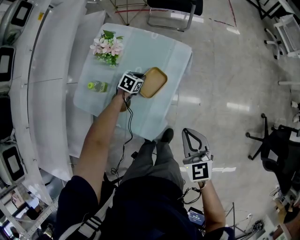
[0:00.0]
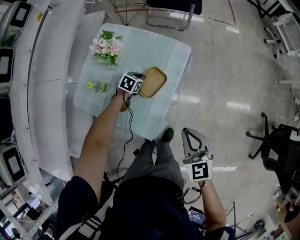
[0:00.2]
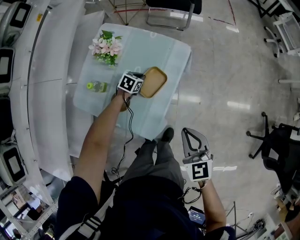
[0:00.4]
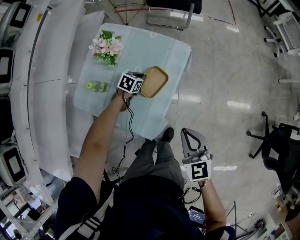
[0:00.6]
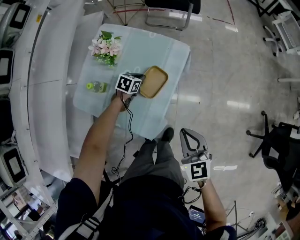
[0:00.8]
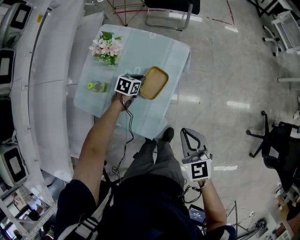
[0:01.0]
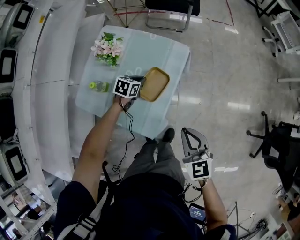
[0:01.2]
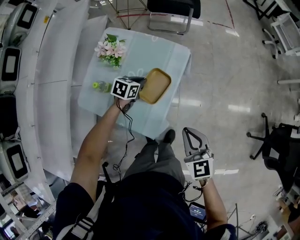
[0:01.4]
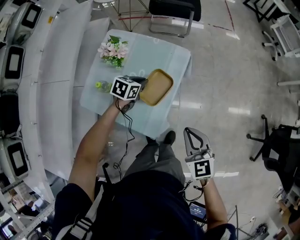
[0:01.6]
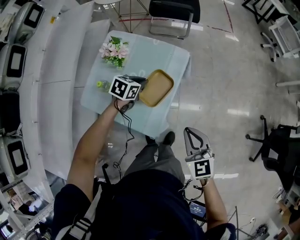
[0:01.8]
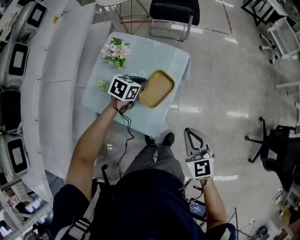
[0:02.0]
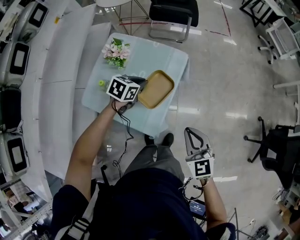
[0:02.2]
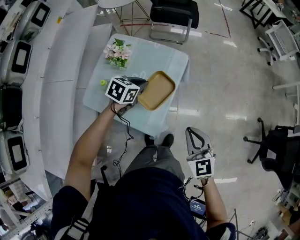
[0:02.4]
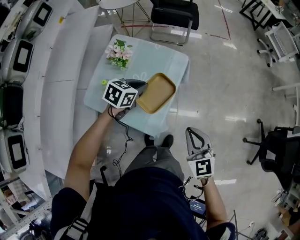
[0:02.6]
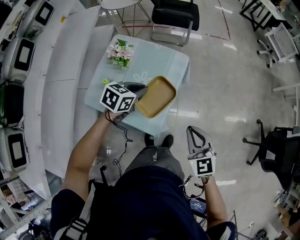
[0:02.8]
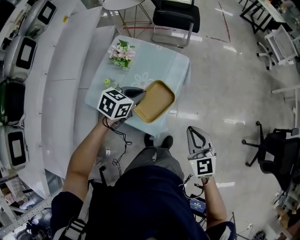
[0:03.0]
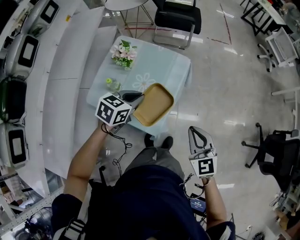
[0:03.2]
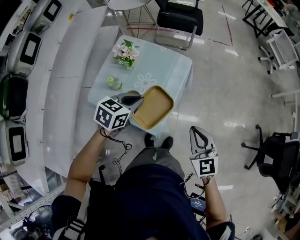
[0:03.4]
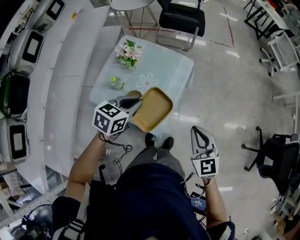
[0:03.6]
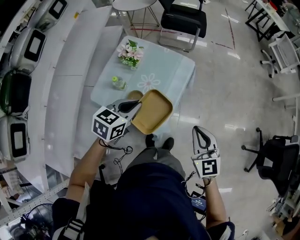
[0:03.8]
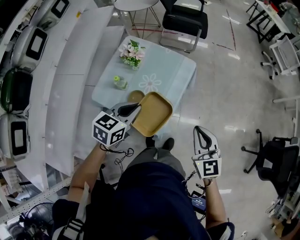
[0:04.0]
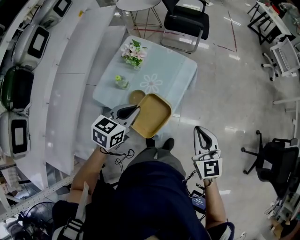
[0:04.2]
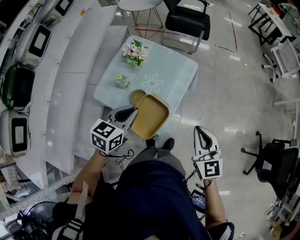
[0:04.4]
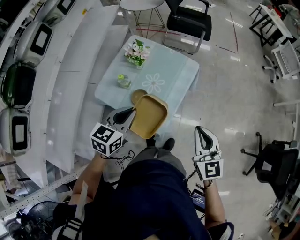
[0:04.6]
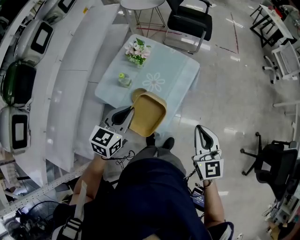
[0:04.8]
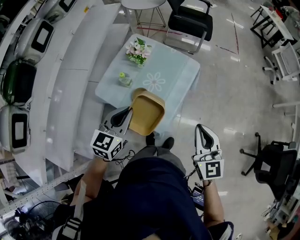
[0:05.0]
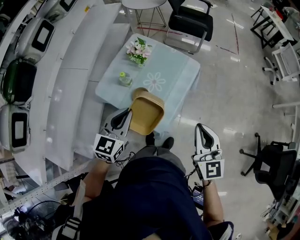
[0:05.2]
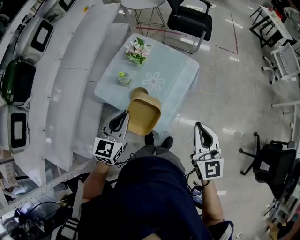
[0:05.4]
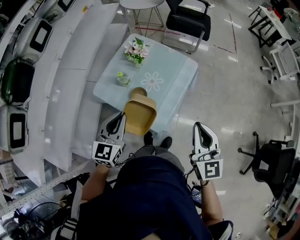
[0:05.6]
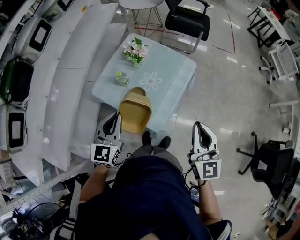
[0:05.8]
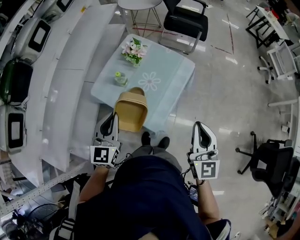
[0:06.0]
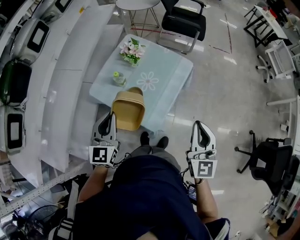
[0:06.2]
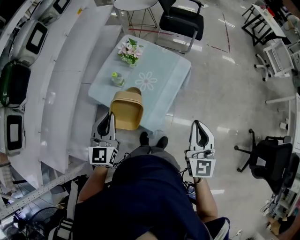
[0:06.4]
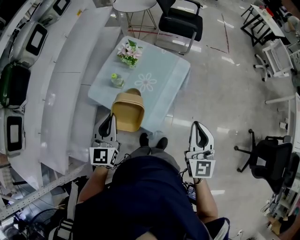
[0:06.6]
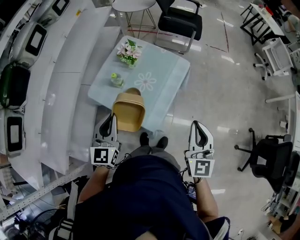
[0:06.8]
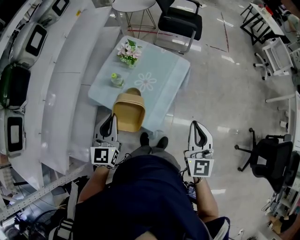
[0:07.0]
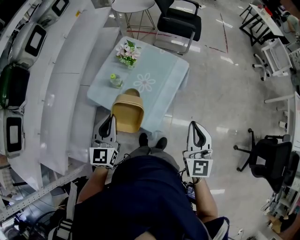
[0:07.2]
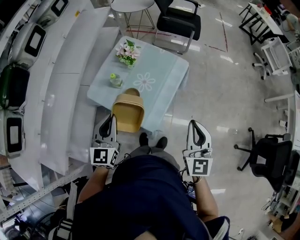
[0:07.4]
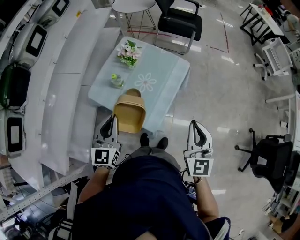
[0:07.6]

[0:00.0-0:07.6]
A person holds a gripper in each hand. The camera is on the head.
0:00.0 to 0:01.6: The left gripper moves upward, some 15 cm.
0:01.6 to 0:03.0: The right gripper is displaced upward by some 5 cm, while the left gripper moves upward and backward, roughly 20 cm.
0:03.0 to 0:04.6: The left gripper heads backward, upward and to the left, covering roughly 15 cm, and turns by roughly 20 degrees. The right gripper goes roughly 5 cm upward.
0:04.6 to 0:06.0: The left gripper travels to the left by some 5 cm, and changes its angle by approximately 30 degrees.
0:06.0 to 0:07.6: The grippers stay close to where they were, moving slightly.

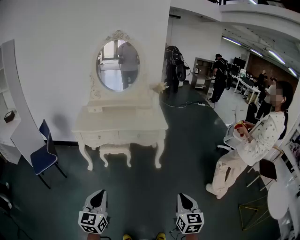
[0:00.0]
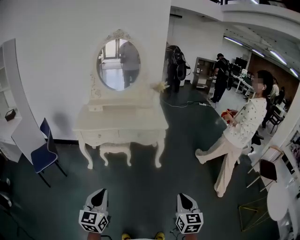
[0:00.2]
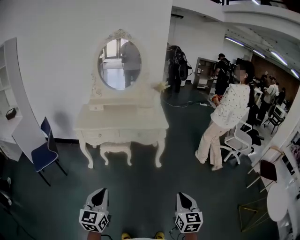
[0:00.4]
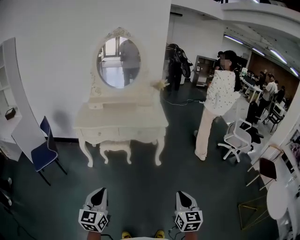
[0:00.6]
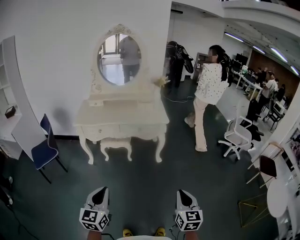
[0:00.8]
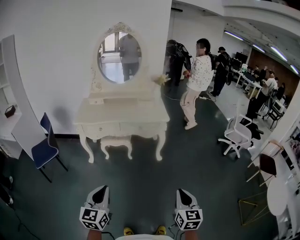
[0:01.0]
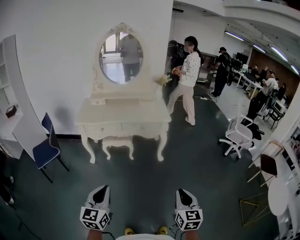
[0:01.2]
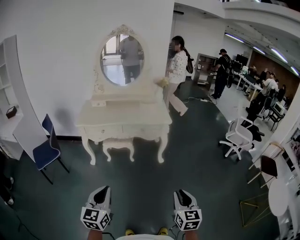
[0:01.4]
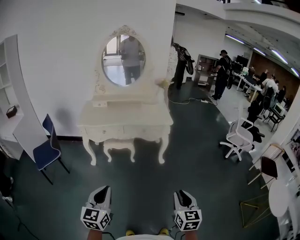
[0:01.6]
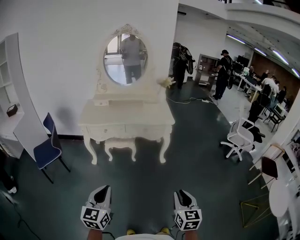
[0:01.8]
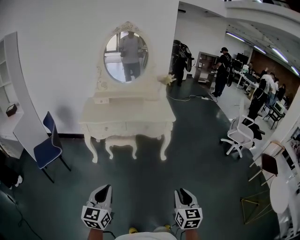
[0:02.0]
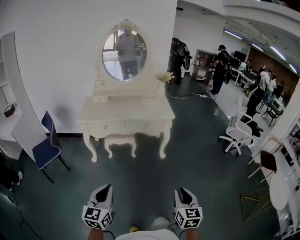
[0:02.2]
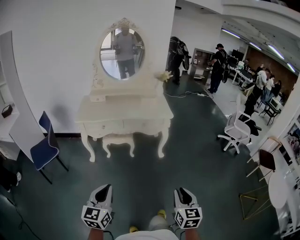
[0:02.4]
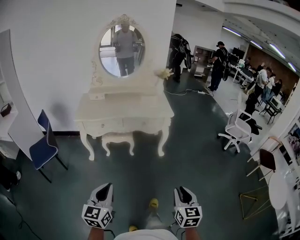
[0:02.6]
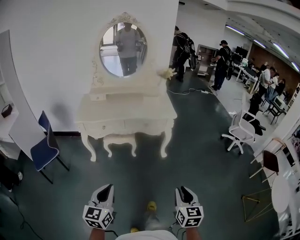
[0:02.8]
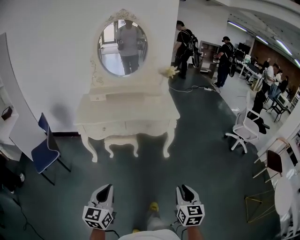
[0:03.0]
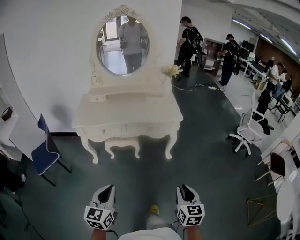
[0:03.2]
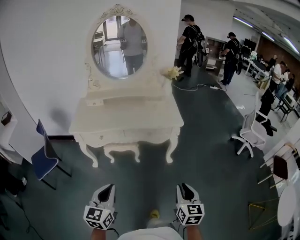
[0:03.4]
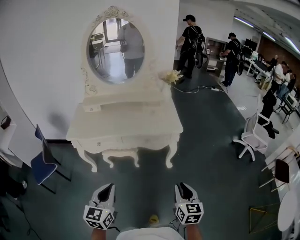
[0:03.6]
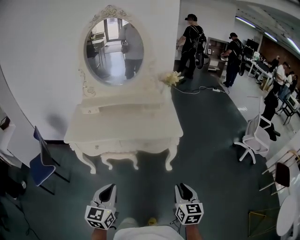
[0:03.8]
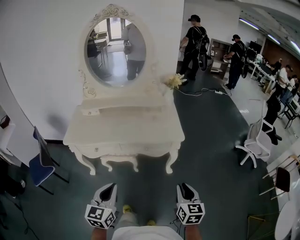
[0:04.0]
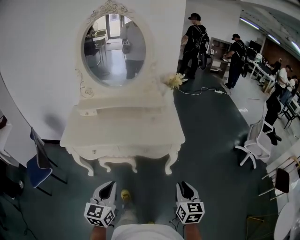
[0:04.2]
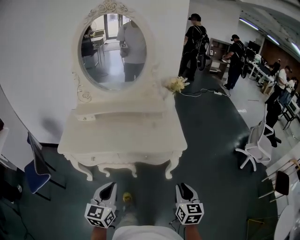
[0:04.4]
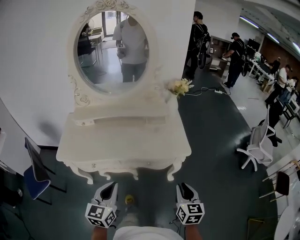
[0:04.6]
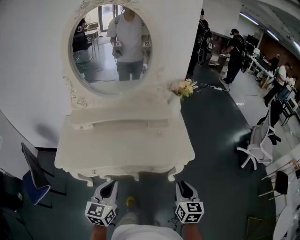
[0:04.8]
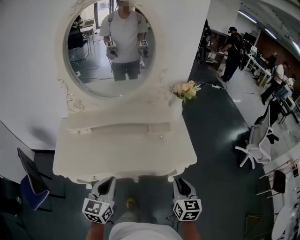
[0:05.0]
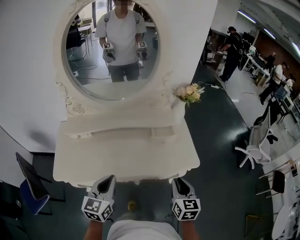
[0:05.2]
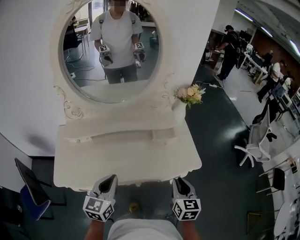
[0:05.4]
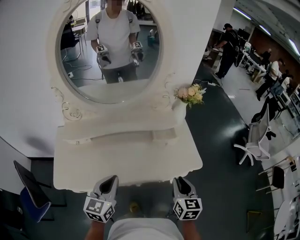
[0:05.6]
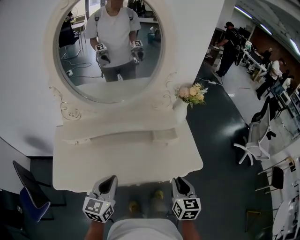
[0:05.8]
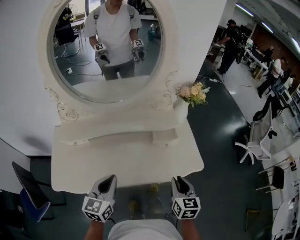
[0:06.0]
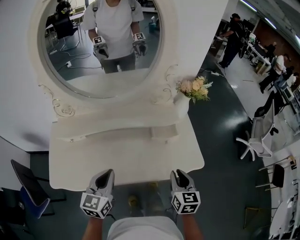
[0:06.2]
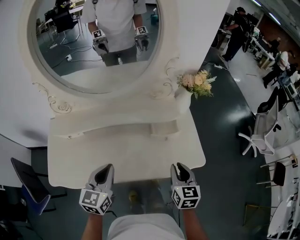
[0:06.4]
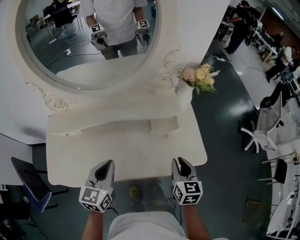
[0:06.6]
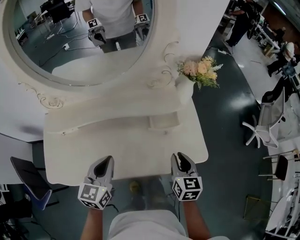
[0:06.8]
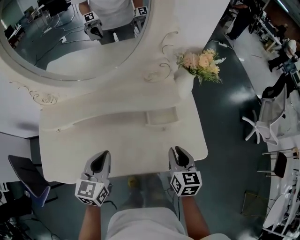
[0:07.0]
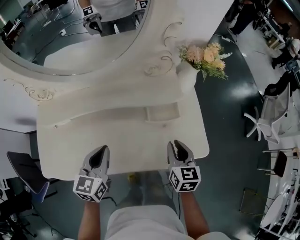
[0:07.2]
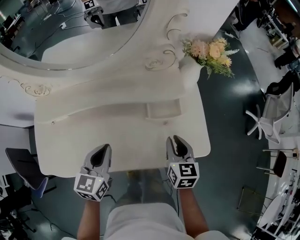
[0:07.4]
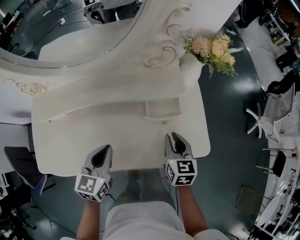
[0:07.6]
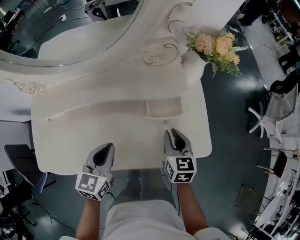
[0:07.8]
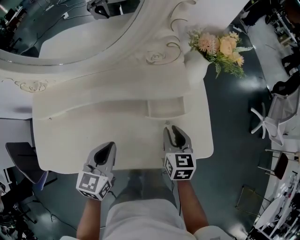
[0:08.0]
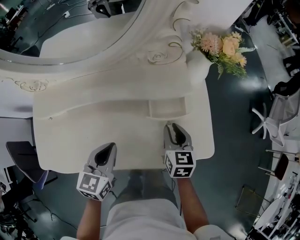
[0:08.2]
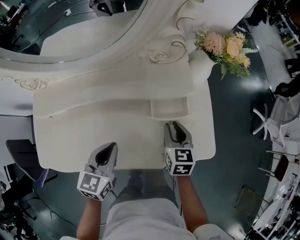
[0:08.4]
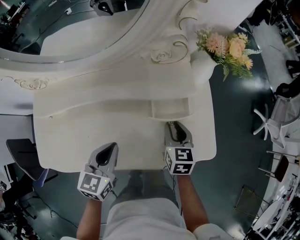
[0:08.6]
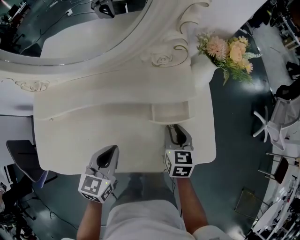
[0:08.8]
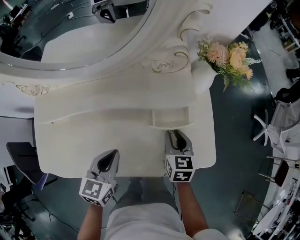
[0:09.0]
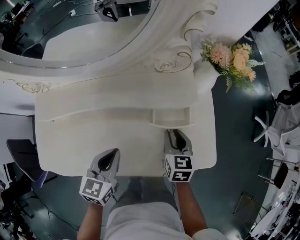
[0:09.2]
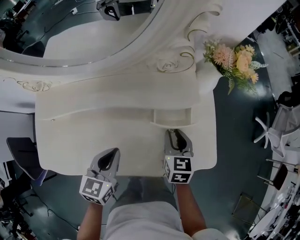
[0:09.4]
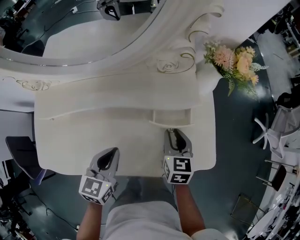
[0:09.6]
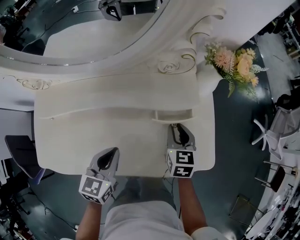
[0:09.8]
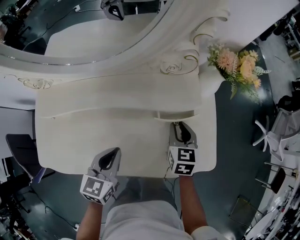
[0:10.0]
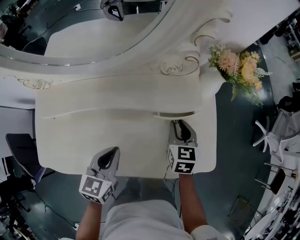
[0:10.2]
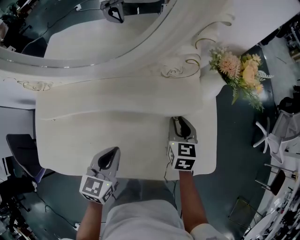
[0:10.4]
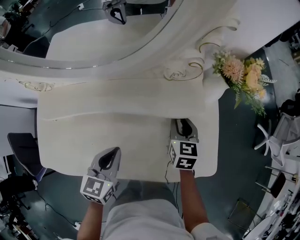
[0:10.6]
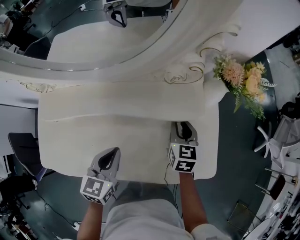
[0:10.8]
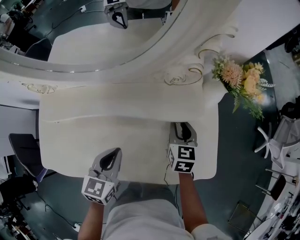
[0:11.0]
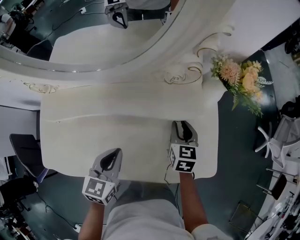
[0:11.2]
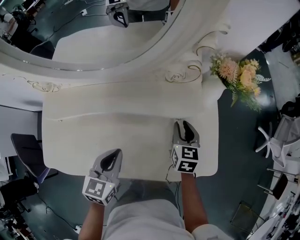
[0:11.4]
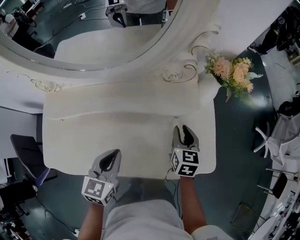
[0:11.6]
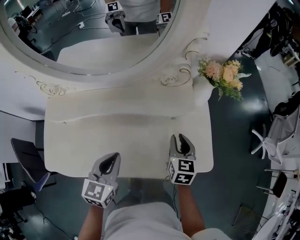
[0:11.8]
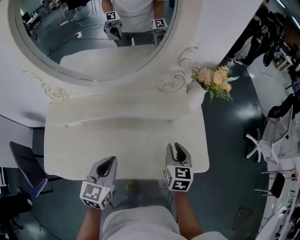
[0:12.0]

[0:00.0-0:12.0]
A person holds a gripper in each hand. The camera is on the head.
0:00.0 to 0:01.6: There are only small adjustments of the grippers.
0:01.6 to 0:03.0: Both grippers travel together forward, roughly 10 cm.
0:03.0 to 0:04.4: The grippers both shift forward by some 40 cm.
0:04.4 to 0:06.0: Both grippers travel together forward and to the left, some 35 cm.
0:06.0 to 0:07.6: The right gripper moves forward and downward, some 20 cm. The left gripper heads forward, downward and to the right, covering roughly 15 cm.
0:07.6 to 0:09.0: The right gripper goes about 5 cm forward.
0:09.0 to 0:10.4: The right gripper is displaced forward by approximately 5 cm.
0:10.4 to 0:12.0: The left gripper shifts approximately 10 cm upward and backward. Meanwhile the right gripper goes roughly 15 cm backward and upward.

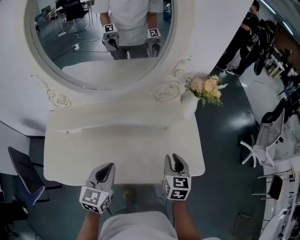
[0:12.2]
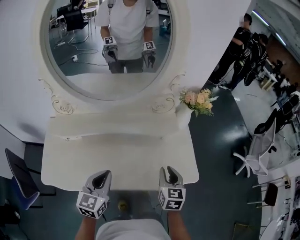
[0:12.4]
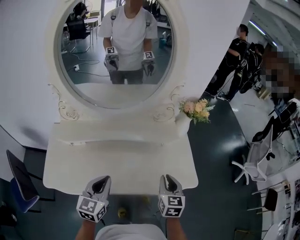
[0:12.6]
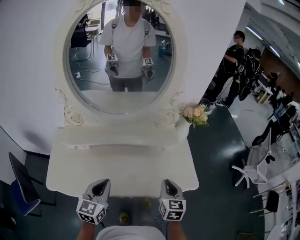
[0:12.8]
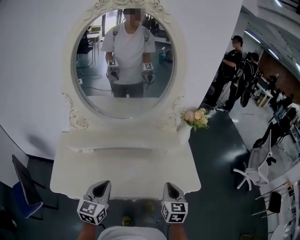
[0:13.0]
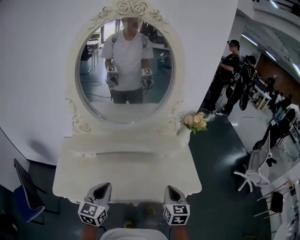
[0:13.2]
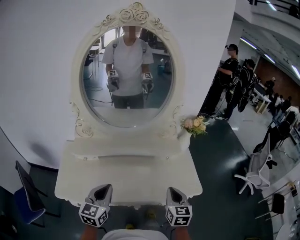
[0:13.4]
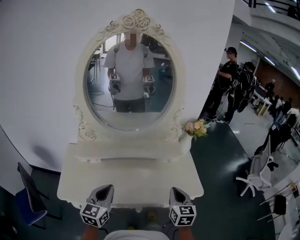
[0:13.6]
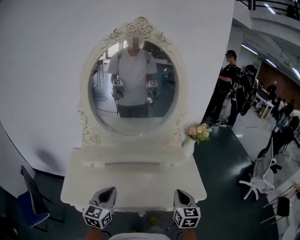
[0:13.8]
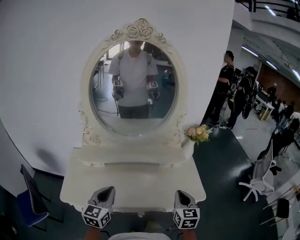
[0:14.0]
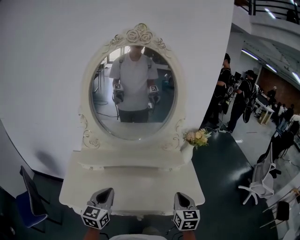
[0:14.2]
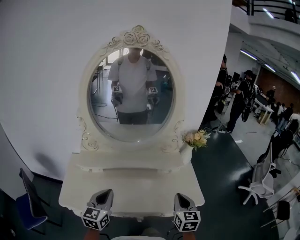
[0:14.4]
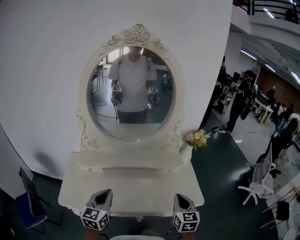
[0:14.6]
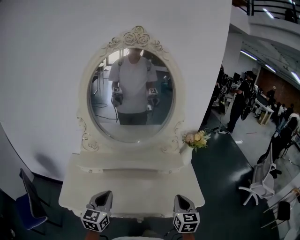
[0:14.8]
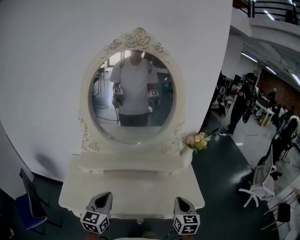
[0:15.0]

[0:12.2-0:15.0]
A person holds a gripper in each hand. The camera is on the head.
0:12.2 to 0:13.6: The right gripper is displaced backward and upward by approximately 15 cm, and closes its fingers; the left gripper goes roughly 15 cm backward, upward and to the left.
0:13.6 to 0:15.0: The grippers make only small movements.

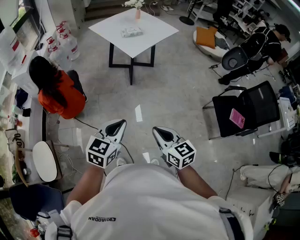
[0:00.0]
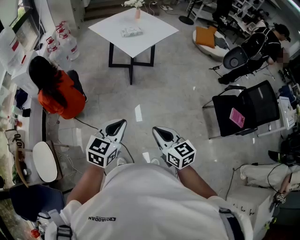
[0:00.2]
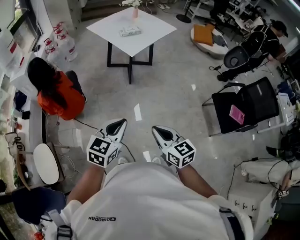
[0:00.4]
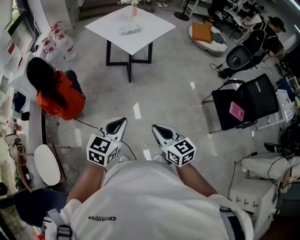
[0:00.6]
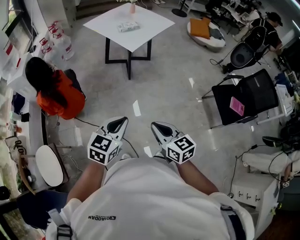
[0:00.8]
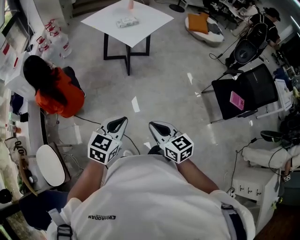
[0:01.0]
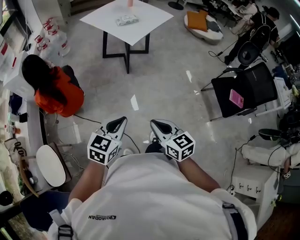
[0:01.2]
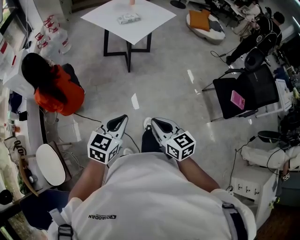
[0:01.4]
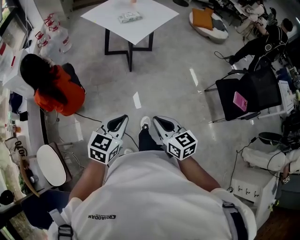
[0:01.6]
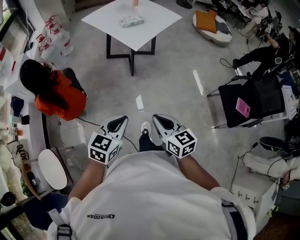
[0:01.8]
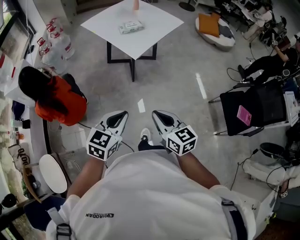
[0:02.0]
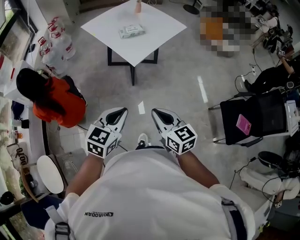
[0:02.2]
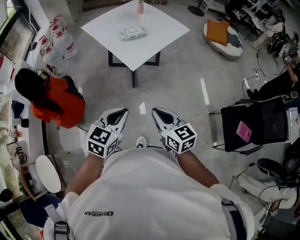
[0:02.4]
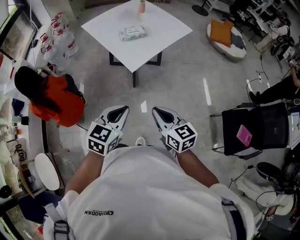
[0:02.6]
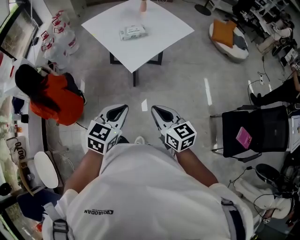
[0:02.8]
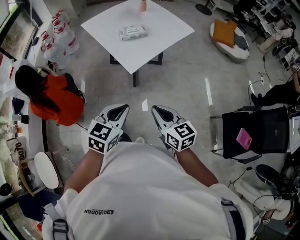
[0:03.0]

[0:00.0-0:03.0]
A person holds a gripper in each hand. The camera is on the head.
0:00.0 to 0:01.6: Both grippers move to the left, roughly 10 cm.
0:01.6 to 0:03.0: The grippers both shift forward by some 35 cm.
